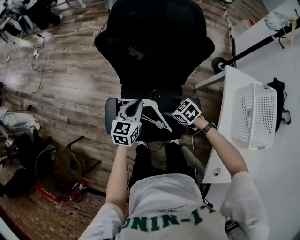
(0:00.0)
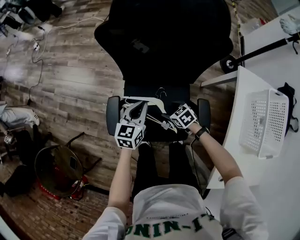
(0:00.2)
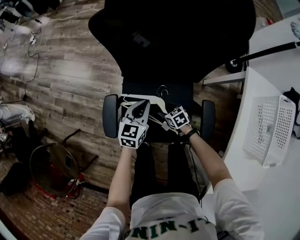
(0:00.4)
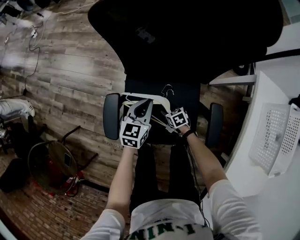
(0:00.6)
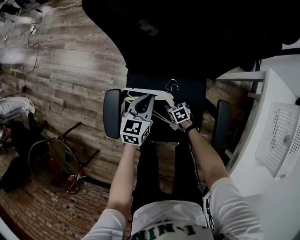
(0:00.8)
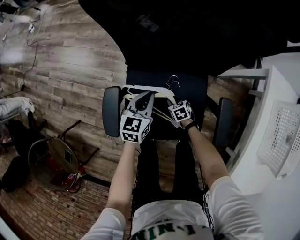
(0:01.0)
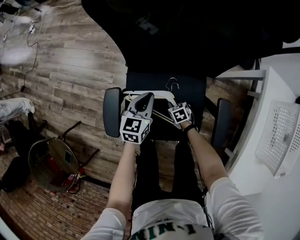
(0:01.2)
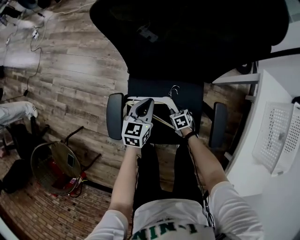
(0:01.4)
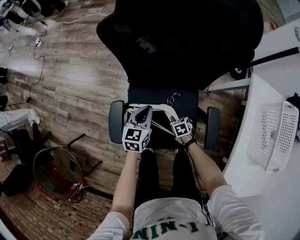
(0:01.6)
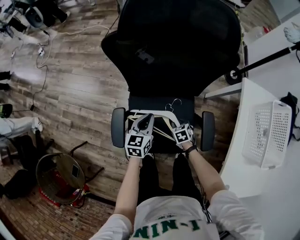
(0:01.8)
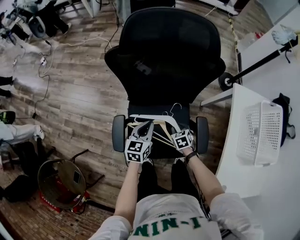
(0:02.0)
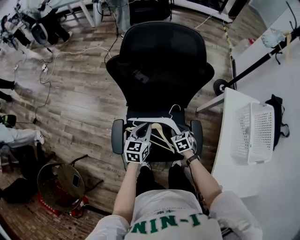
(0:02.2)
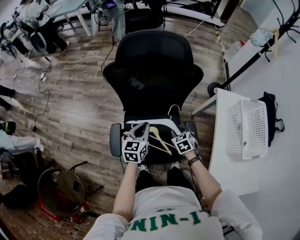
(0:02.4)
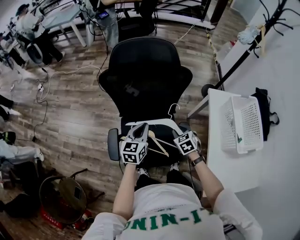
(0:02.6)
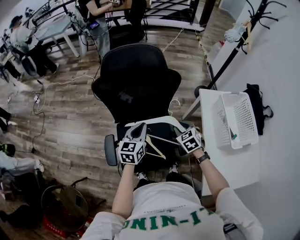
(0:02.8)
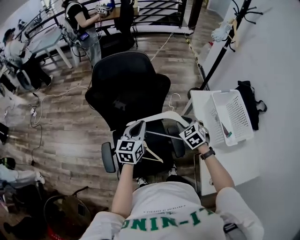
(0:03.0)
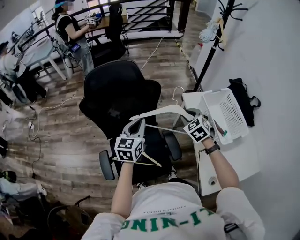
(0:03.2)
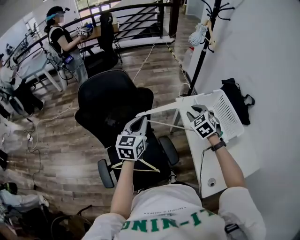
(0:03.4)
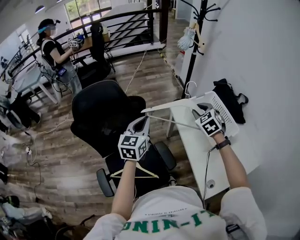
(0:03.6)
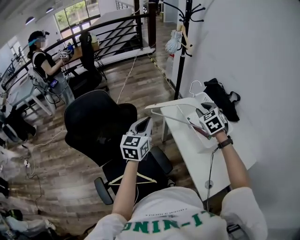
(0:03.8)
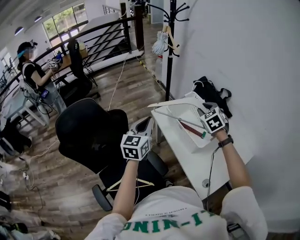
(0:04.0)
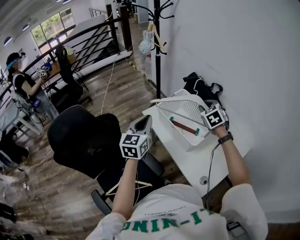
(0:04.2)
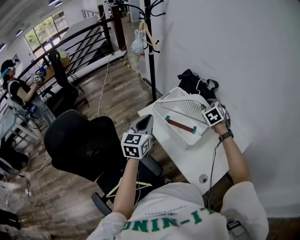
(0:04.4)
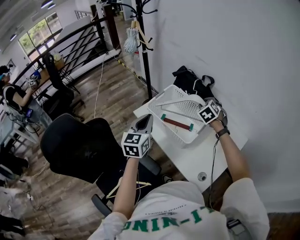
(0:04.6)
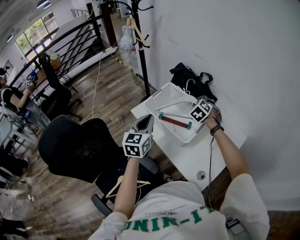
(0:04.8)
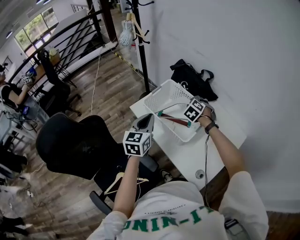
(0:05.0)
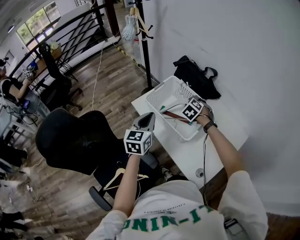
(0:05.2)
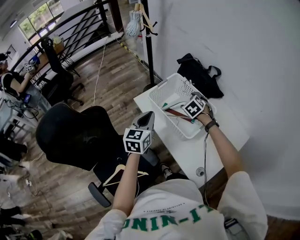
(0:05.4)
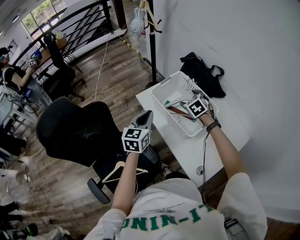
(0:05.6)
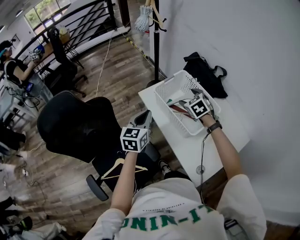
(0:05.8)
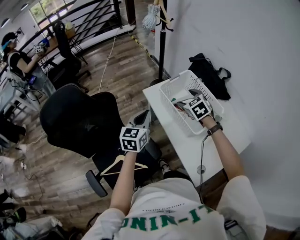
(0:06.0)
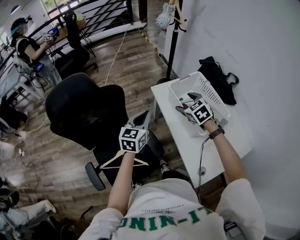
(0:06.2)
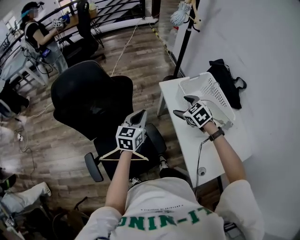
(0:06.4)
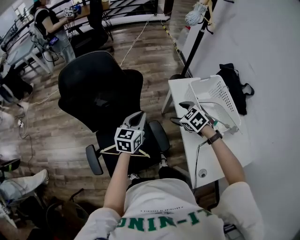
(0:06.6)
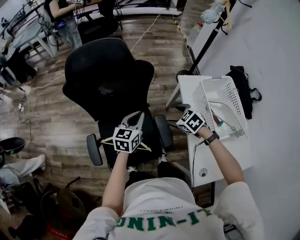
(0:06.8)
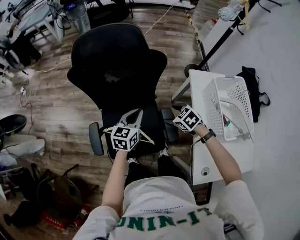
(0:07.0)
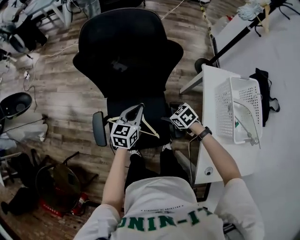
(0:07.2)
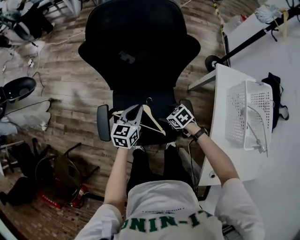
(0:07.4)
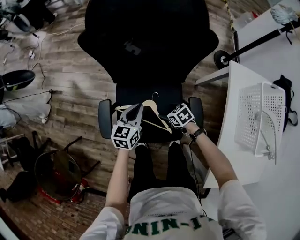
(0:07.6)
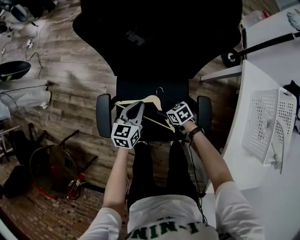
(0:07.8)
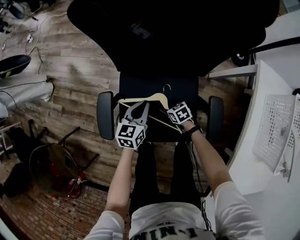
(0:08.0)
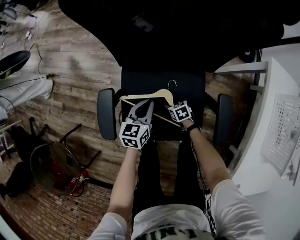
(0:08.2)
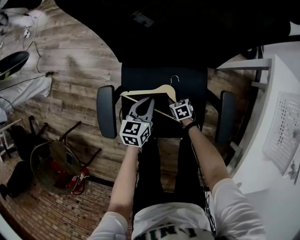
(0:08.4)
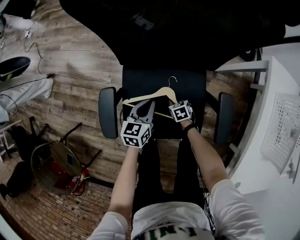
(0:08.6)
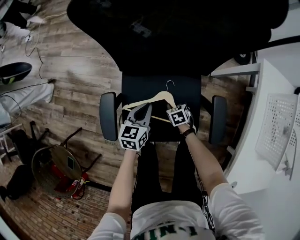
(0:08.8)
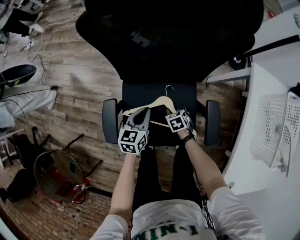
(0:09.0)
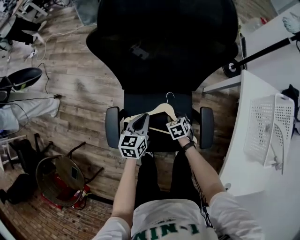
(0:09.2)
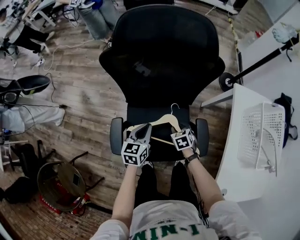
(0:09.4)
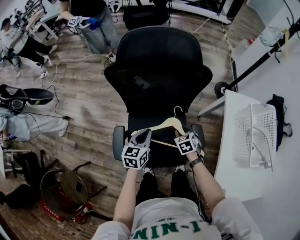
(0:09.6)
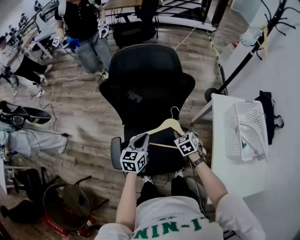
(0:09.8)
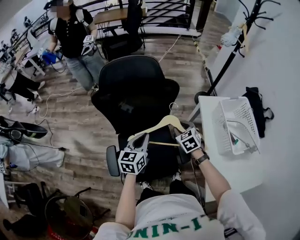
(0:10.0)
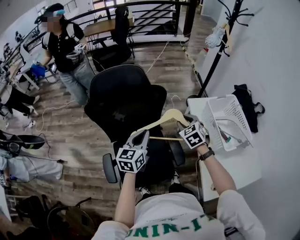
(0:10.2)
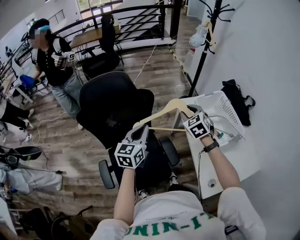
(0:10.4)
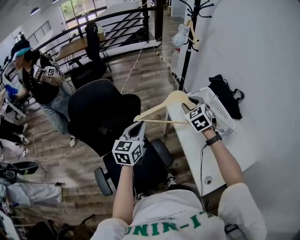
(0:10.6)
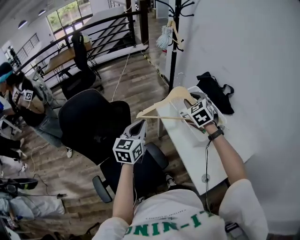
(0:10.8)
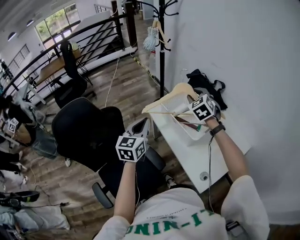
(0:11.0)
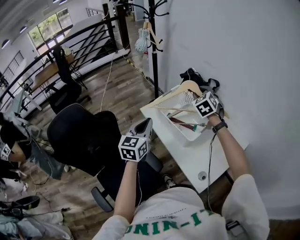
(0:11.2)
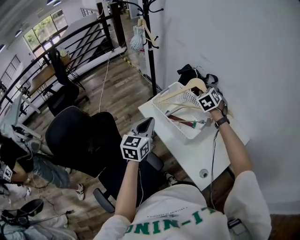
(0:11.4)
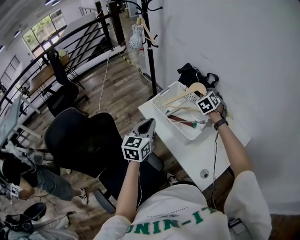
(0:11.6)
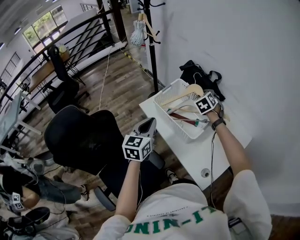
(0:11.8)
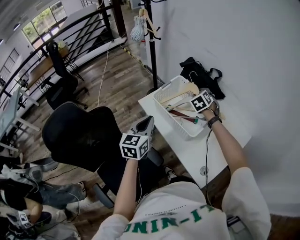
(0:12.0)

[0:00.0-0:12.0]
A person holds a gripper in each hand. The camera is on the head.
0:00.0 to 0:01.6: The left gripper travels downward by roughly 15 cm; the right gripper is displaced downward by roughly 25 cm, rotates approximately 30 degrees, and closes.
0:01.6 to 0:03.0: Both grippers travel together upward and to the right, approximately 40 cm. The right gripper turns by some 30 degrees.
0:03.0 to 0:04.4: The left gripper ends up some 35 cm from where it was, and swivels approximately 40 degrees; the right gripper ends up roughly 50 cm from where it was, and swivels approximately 50 degrees.
0:04.4 to 0:06.0: The right gripper moves to the left and downward, approximately 15 cm, turns by about 20 degrees, and opens; the left gripper moves downward, about 10 cm.
0:06.0 to 0:07.6: The right gripper changes place by some 60 cm, and swivels roughly 60 degrees; the left gripper ends up roughly 50 cm from where it was, and turns by roughly 40 degrees.
0:07.6 to 0:09.0: Both grippers move downward, about 10 cm. The right gripper turns by about 20 degrees, and closes.
0:09.0 to 0:10.4: The grippers both shift upward by about 50 cm. The left gripper swivels roughly 30 degrees; the right gripper tilts its fingers roughly 30 degrees upward.
0:10.4 to 0:12.0: The right gripper ends up some 35 cm from where it was, and changes its angle by approximately 40 degrees. Meanwhile the left gripper changes place by roughly 25 cm, and turns by about 30 degrees.

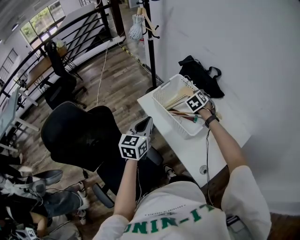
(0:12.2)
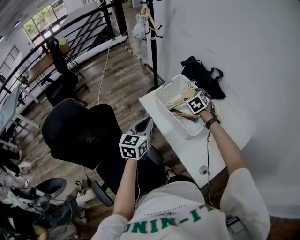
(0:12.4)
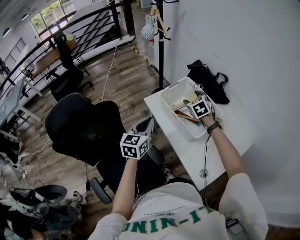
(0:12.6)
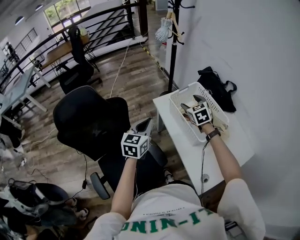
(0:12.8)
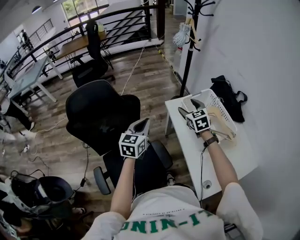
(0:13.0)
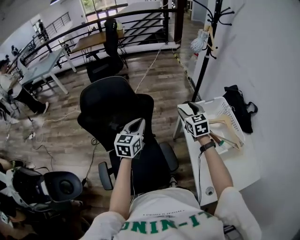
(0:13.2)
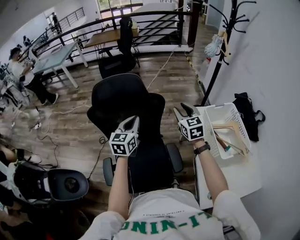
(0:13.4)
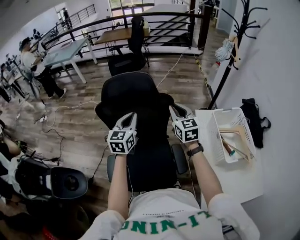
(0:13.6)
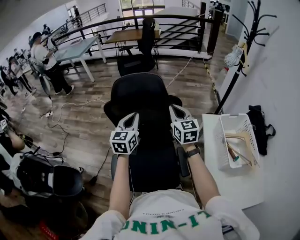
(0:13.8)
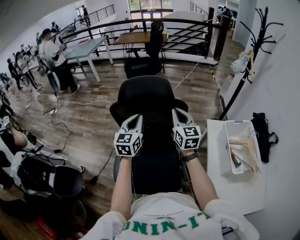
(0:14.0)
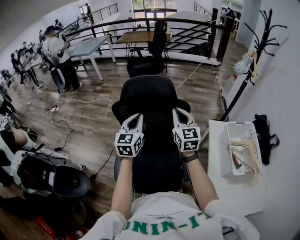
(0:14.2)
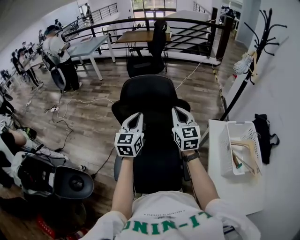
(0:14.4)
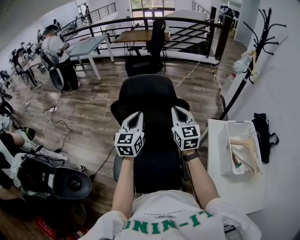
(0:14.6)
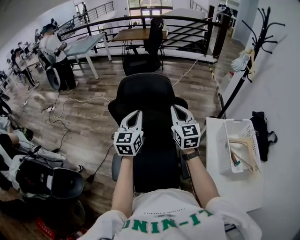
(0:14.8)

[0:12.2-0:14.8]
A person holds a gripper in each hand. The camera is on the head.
0:12.2 to 0:13.4: The right gripper ends up some 40 cm from where it was, angles its fingers upward, by roughly 30 degrees, and opens, then closes once more; the left gripper shifts by some 30 cm, and rotates some 40 degrees.
0:13.4 to 0:14.8: The left gripper goes some 10 cm to the left and upward; the right gripper heads to the left, covering about 15 cm, and closes up.

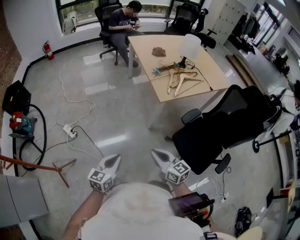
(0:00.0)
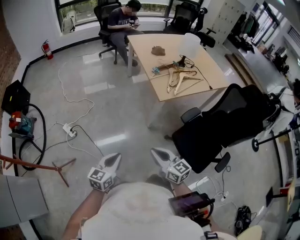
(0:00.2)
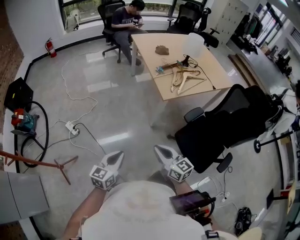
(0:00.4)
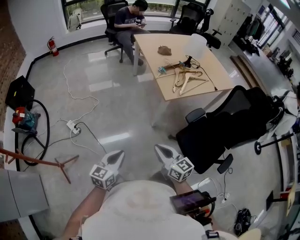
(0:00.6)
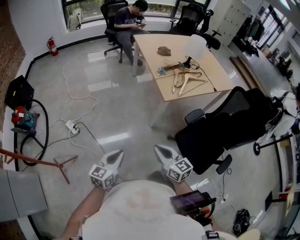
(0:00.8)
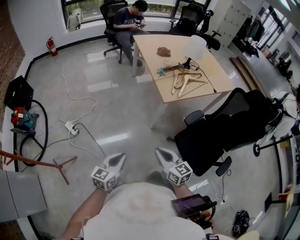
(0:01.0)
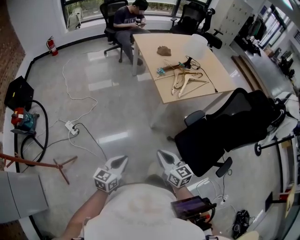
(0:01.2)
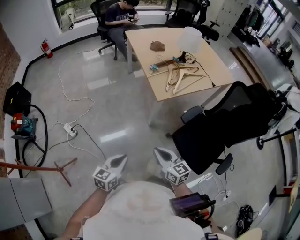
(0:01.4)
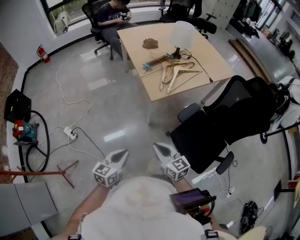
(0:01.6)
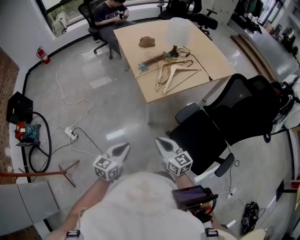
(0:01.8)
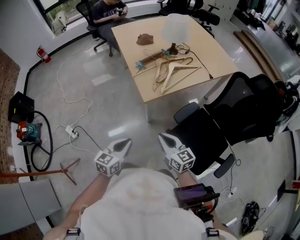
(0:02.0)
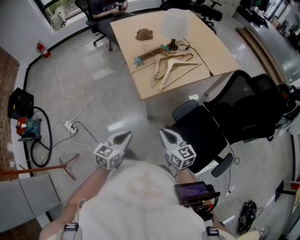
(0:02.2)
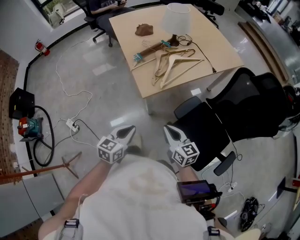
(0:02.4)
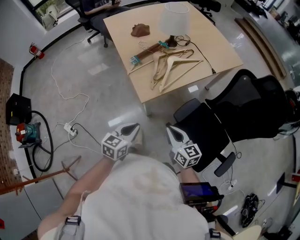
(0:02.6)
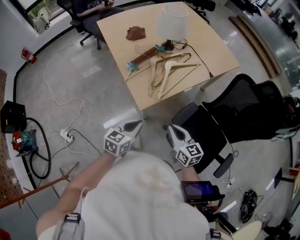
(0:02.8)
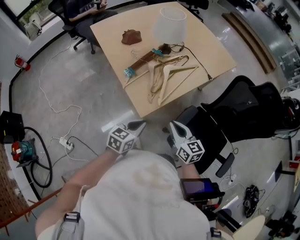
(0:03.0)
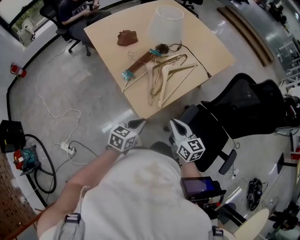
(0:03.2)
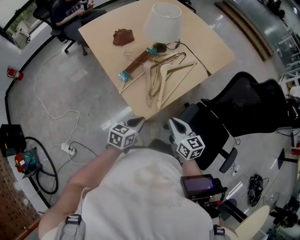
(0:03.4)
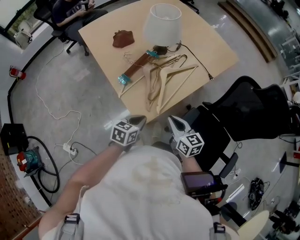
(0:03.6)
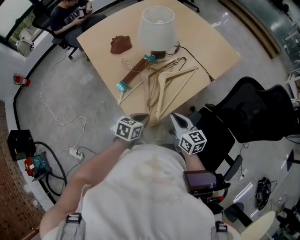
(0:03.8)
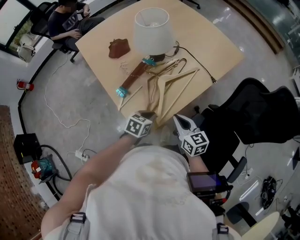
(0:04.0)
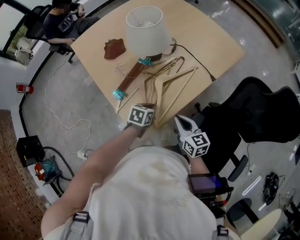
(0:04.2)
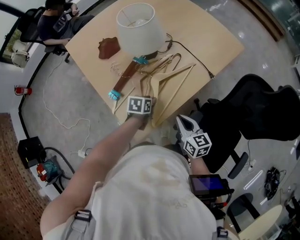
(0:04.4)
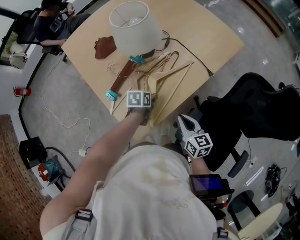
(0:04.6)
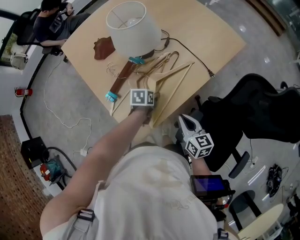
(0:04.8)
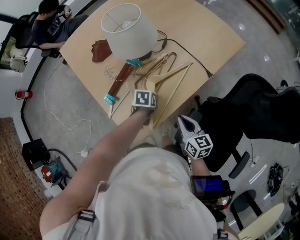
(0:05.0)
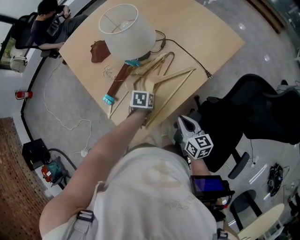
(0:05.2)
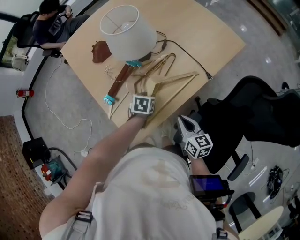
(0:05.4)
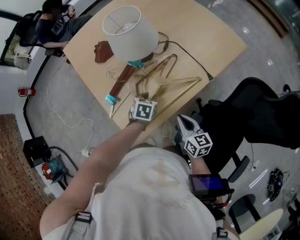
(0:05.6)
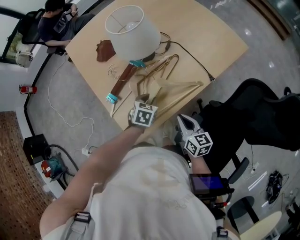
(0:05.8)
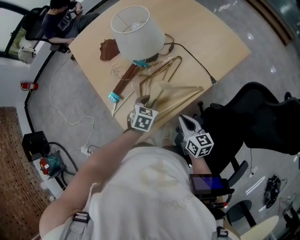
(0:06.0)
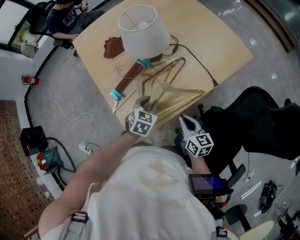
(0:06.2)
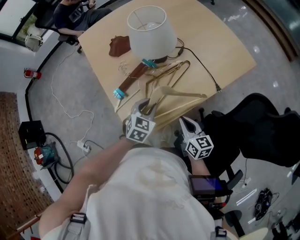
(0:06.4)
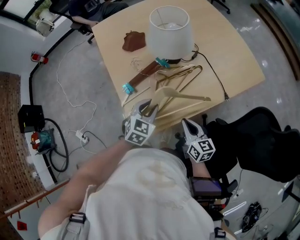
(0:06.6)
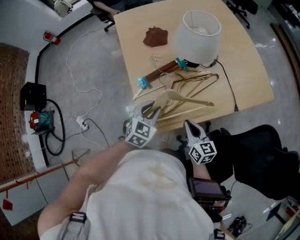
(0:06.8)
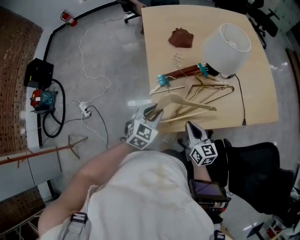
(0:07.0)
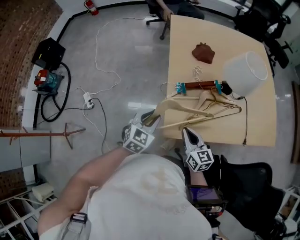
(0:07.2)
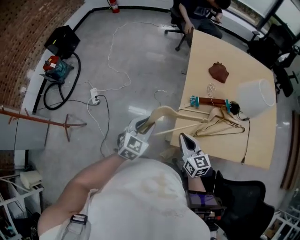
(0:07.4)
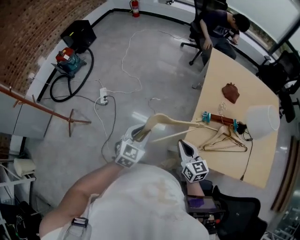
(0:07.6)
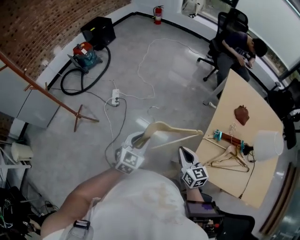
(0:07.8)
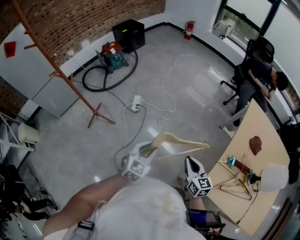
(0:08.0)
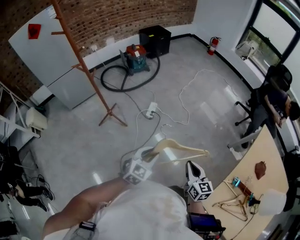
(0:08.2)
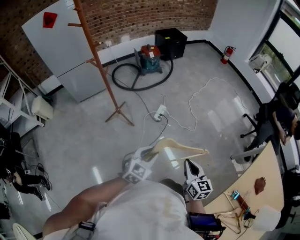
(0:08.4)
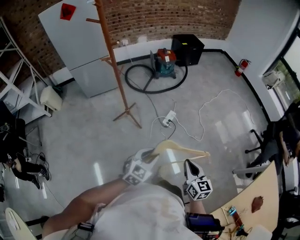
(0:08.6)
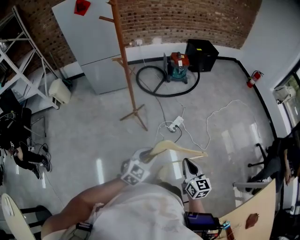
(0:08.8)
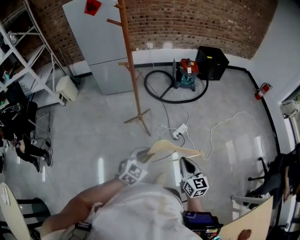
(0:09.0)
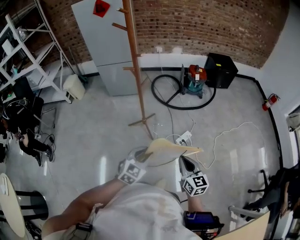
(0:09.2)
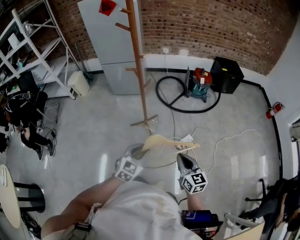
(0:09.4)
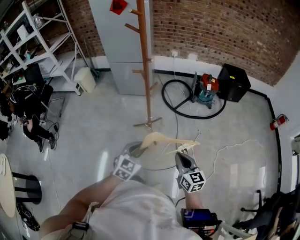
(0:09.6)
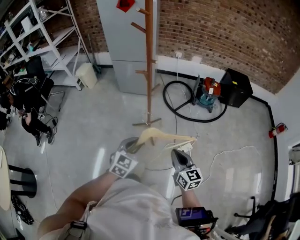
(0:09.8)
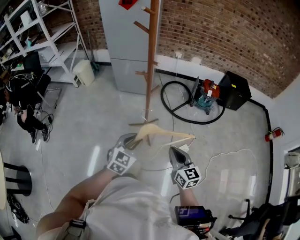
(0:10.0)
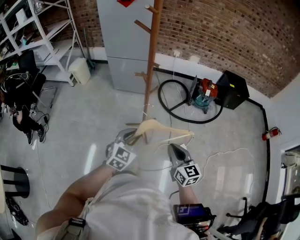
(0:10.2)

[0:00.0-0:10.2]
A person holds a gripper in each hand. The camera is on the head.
0:00.0 to 0:01.4: The left gripper shifts roughly 5 cm to the right; the right gripper ends up roughly 5 cm from where it was.
0:01.4 to 0:03.0: Both grippers travel together forward and to the right, roughly 40 cm. The left gripper swivels approximately 20 degrees. Meanwhile the right gripper rotates approximately 20 degrees.
0:03.0 to 0:04.4: The left gripper is displaced forward and downward by roughly 30 cm, rotates roughly 30 degrees, and opens, while the right gripper shifts some 15 cm forward.
0:04.4 to 0:05.8: The left gripper shifts by some 5 cm, rotates roughly 30 degrees, and opens, then closes again.
0:05.8 to 0:07.2: The left gripper ends up roughly 30 cm from where it was, and turns by about 30 degrees, while the right gripper changes place by about 20 cm, and rotates some 40 degrees.
0:07.2 to 0:08.8: Both grippers are carried roughly 60 cm. The left gripper swivels approximately 70 degrees. Meanwhile the right gripper rotates roughly 70 degrees.
0:08.8 to 0:10.2: The left gripper shifts by some 25 cm, and turns by roughly 30 degrees, while the right gripper ends up about 30 cm from where it was, and swivels approximately 30 degrees.
